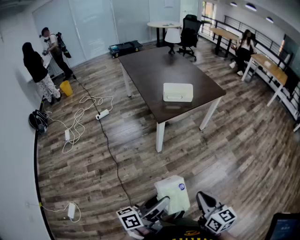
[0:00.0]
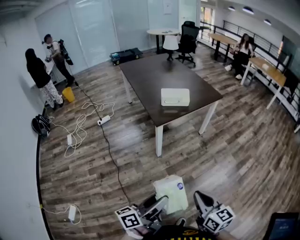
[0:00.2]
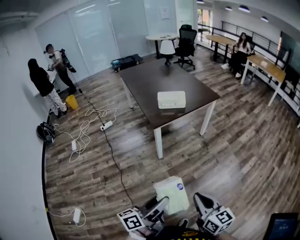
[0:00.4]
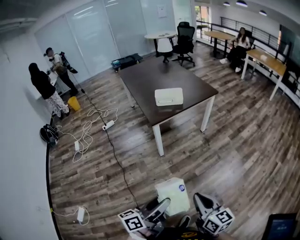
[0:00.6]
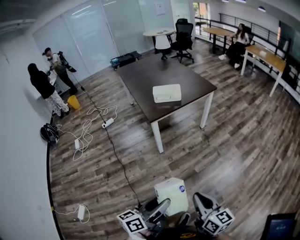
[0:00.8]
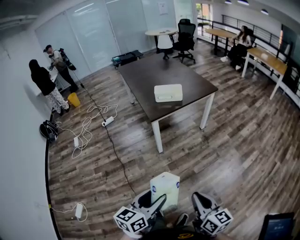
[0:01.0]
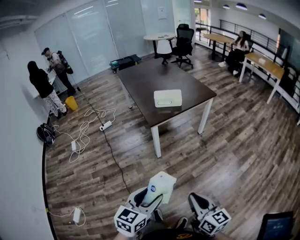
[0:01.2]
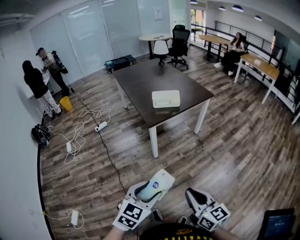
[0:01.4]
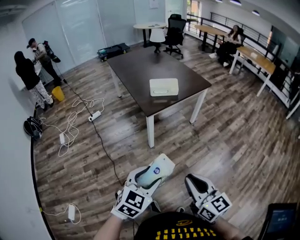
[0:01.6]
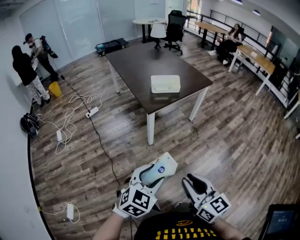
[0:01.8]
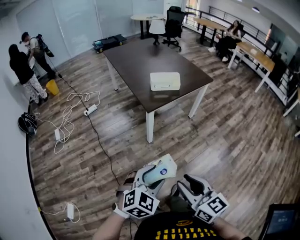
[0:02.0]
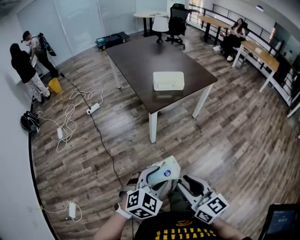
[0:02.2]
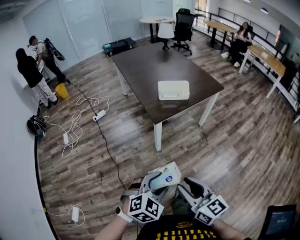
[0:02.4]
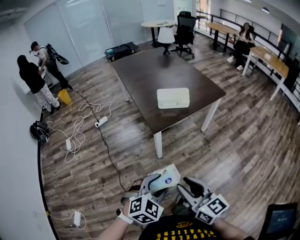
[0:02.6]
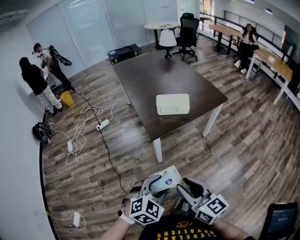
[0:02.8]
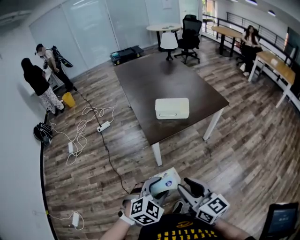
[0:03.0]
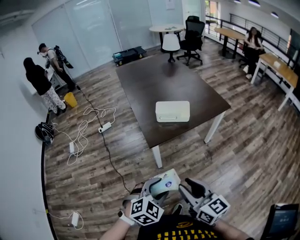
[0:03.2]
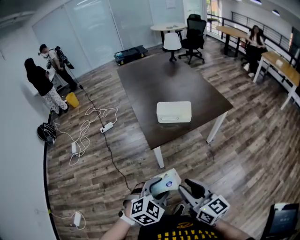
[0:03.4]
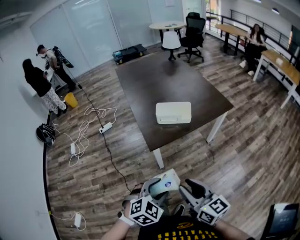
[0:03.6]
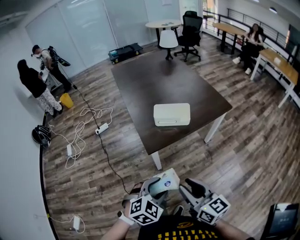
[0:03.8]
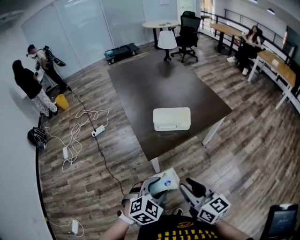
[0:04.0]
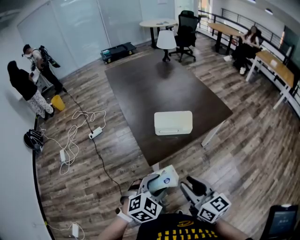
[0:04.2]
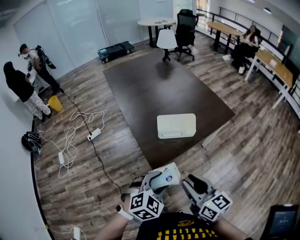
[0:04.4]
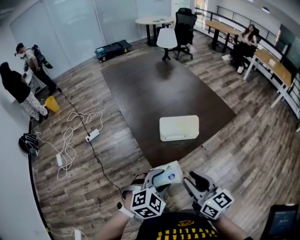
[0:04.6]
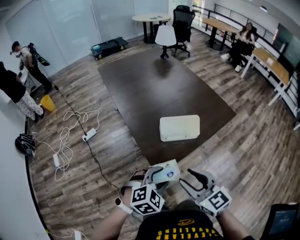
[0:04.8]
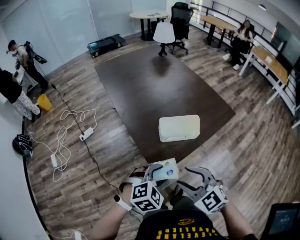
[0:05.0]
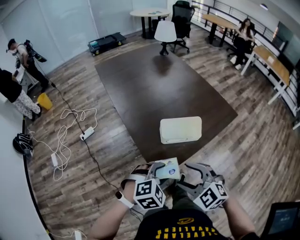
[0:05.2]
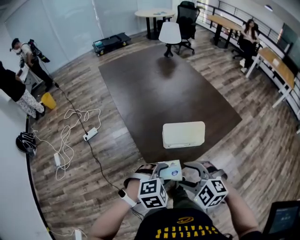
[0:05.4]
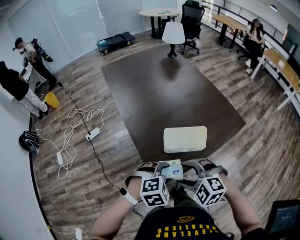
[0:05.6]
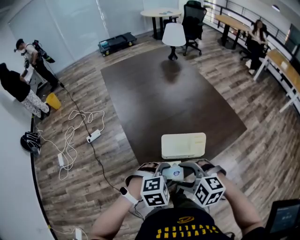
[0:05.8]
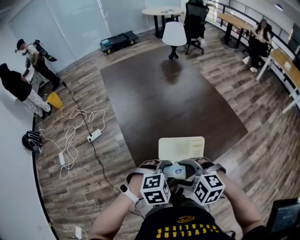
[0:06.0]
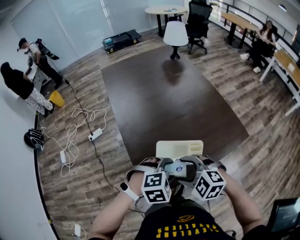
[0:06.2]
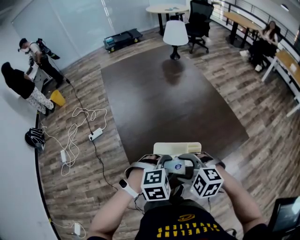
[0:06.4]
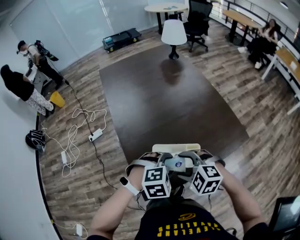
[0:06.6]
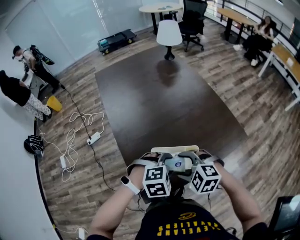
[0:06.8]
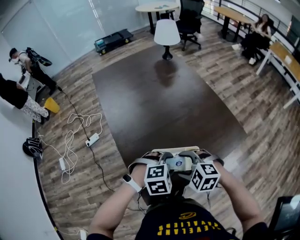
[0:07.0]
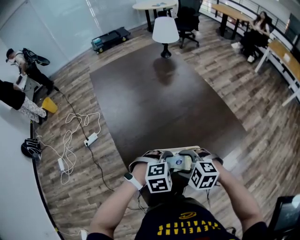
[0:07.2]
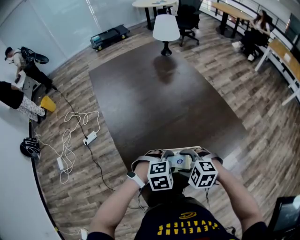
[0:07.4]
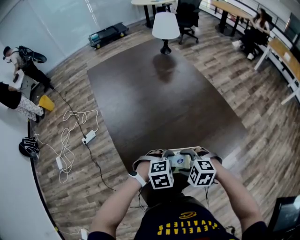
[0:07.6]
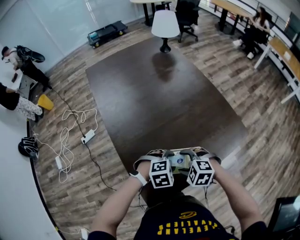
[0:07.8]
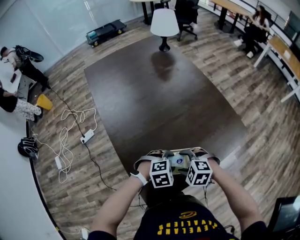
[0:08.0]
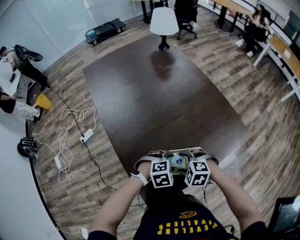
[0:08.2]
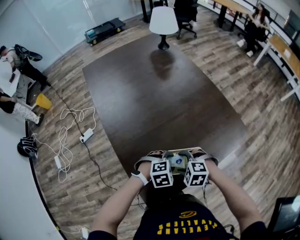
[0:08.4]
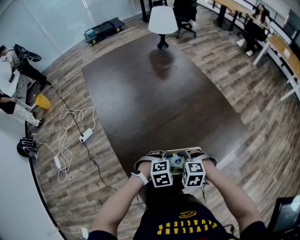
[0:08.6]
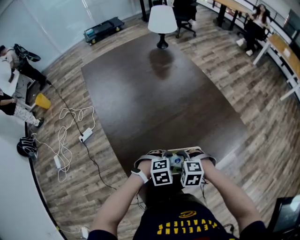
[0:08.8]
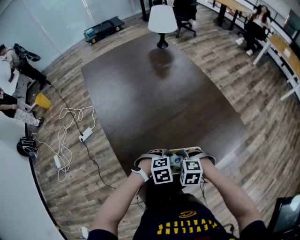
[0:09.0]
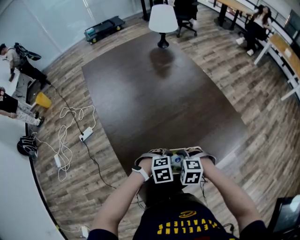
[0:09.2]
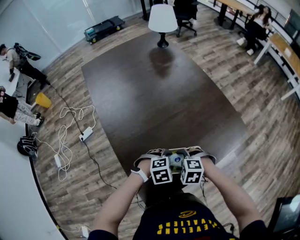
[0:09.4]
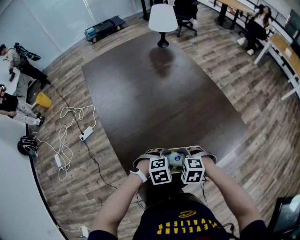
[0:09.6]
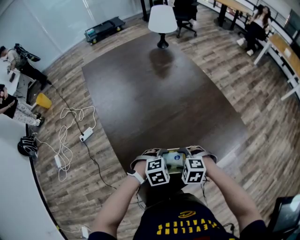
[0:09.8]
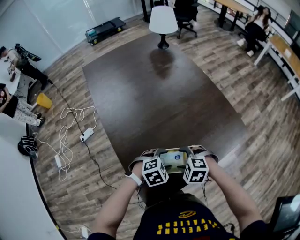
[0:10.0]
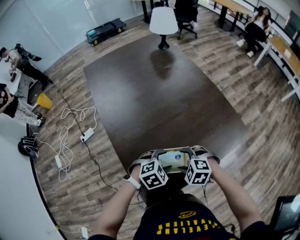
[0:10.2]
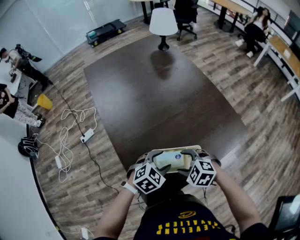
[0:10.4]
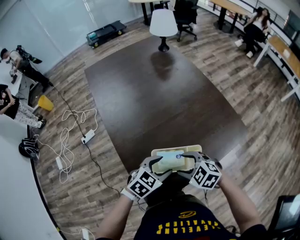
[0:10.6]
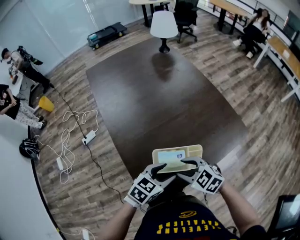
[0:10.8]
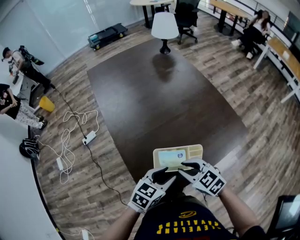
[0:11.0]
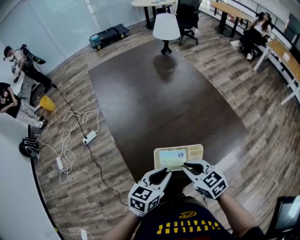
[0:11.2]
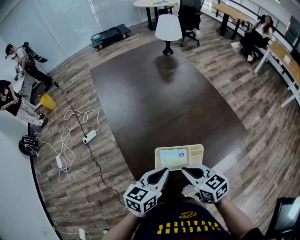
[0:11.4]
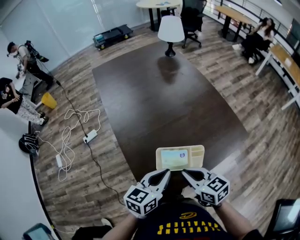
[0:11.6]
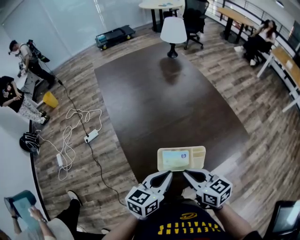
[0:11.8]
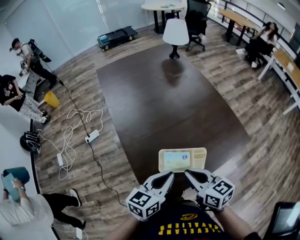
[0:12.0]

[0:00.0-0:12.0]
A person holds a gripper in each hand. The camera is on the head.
0:00.0 to 0:01.6: The right gripper travels upward by approximately 5 cm, and moves roughly 10 cm to the right and comes back; the left gripper travels to the right and back again, roughly 10 cm each way, and twists approximately 70 degrees clockwise, seen from behind.
0:01.6 to 0:03.0: The two grippers go about 20 cm forward.
0:03.0 to 0:04.4: The grippers both shift forward by approximately 20 cm.
0:04.4 to 0:06.0: Both grippers travel together forward, approximately 20 cm. The left gripper changes its angle by approximately 20 degrees; the right gripper tips its fingers downward by about 40 degrees, and opens up.
0:06.0 to 0:07.6: The left gripper changes place by some 15 cm. The right gripper shifts by roughly 15 cm.
0:07.6 to 0:09.0: The two grippers go some 5 cm downward.
0:09.0 to 0:10.4: The left gripper shifts some 5 cm upward, and swivels about 30 degrees.
0:10.4 to 0:12.0: The right gripper travels upward by approximately 15 cm, tilts its fingers about 30 degrees upward, and closes, while the left gripper moves upward and backward, approximately 15 cm, angles its fingers upward, by roughly 30 degrees, and closes its fingers.

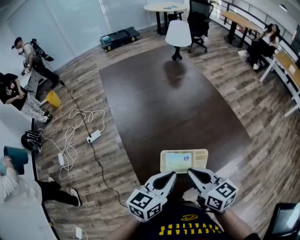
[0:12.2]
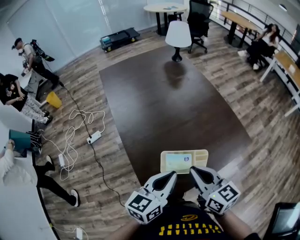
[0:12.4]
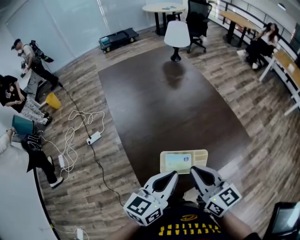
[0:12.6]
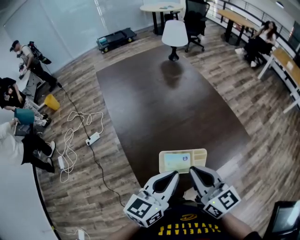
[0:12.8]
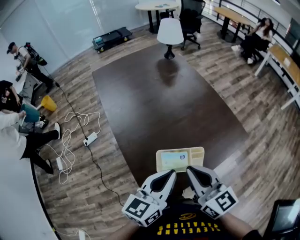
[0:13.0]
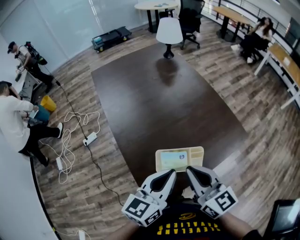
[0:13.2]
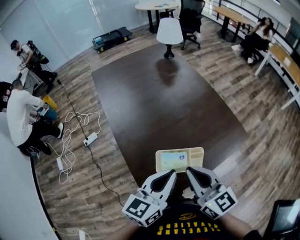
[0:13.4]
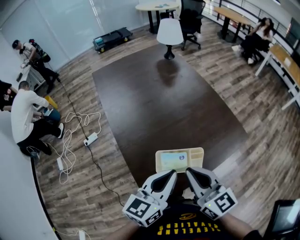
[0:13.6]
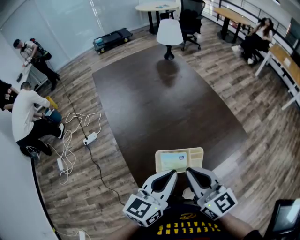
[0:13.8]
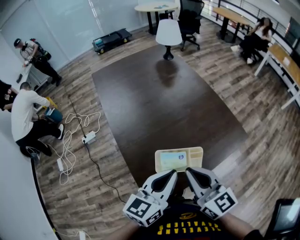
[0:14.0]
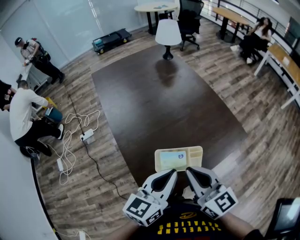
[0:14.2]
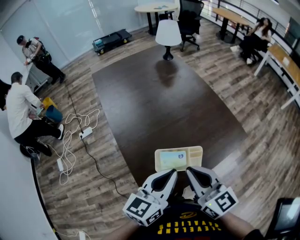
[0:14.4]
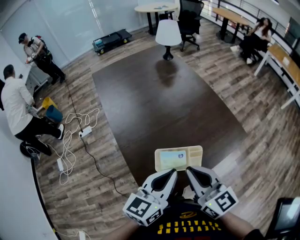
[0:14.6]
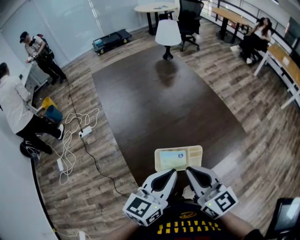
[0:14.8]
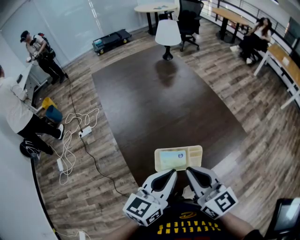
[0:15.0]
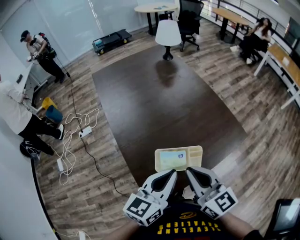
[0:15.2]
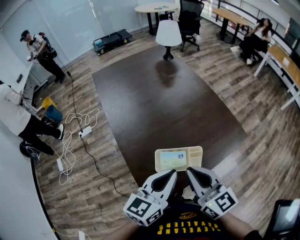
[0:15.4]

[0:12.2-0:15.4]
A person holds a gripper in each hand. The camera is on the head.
0:12.2 to 0:13.8: The grippers both shift upward by about 5 cm.
0:13.8 to 0:15.4: Neither gripper changes place.

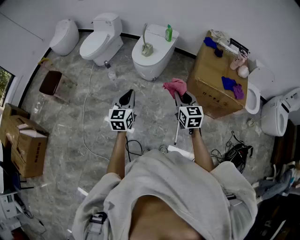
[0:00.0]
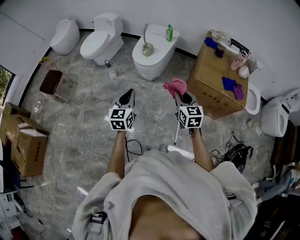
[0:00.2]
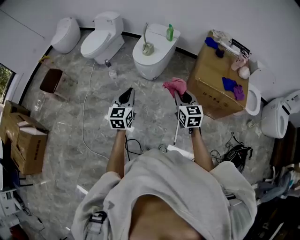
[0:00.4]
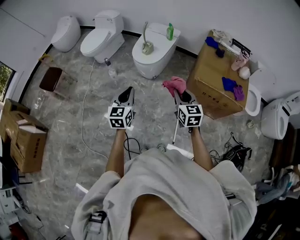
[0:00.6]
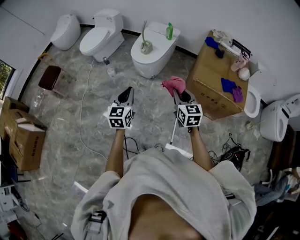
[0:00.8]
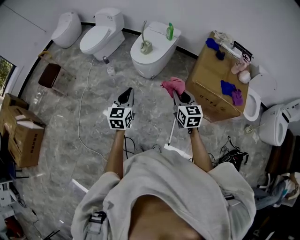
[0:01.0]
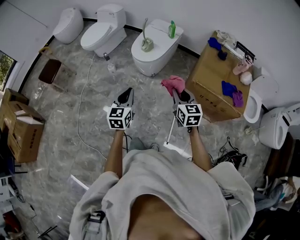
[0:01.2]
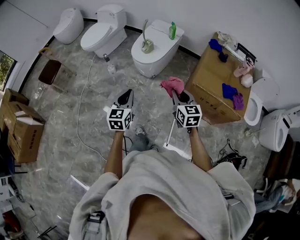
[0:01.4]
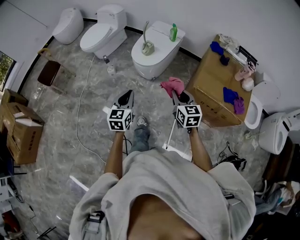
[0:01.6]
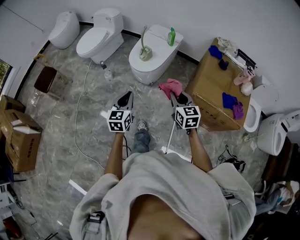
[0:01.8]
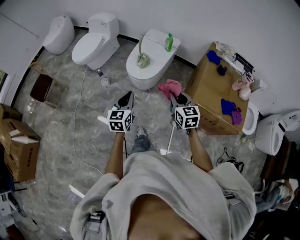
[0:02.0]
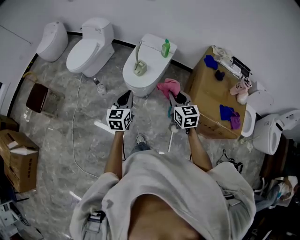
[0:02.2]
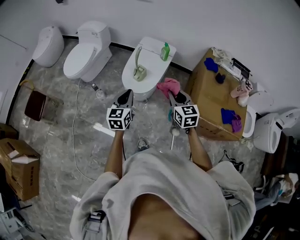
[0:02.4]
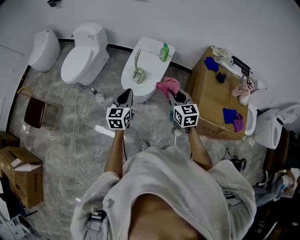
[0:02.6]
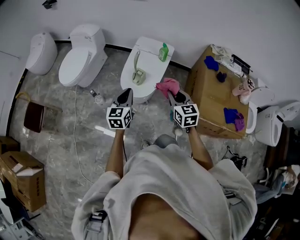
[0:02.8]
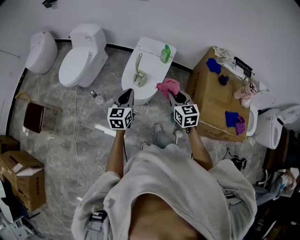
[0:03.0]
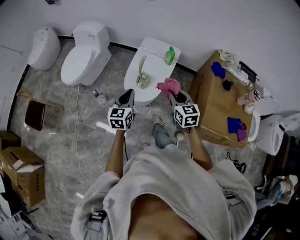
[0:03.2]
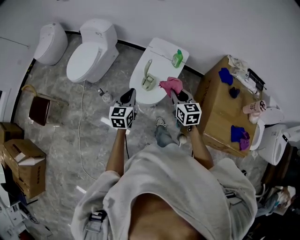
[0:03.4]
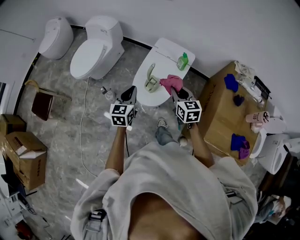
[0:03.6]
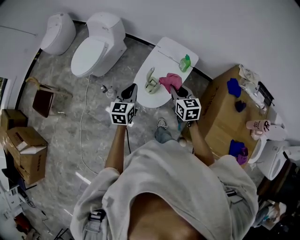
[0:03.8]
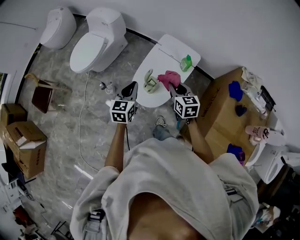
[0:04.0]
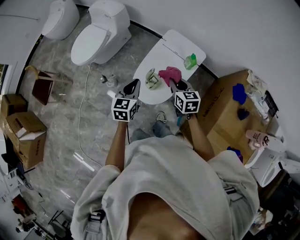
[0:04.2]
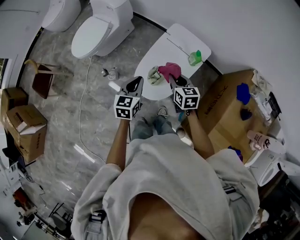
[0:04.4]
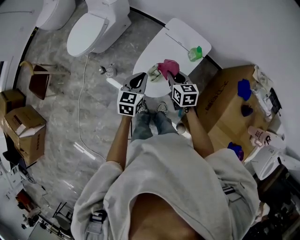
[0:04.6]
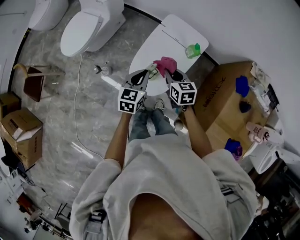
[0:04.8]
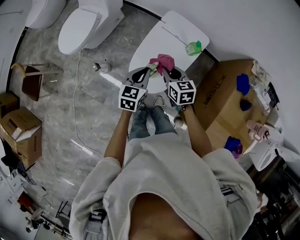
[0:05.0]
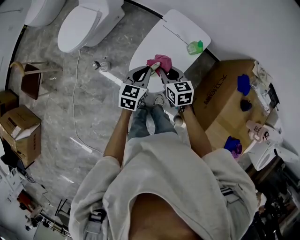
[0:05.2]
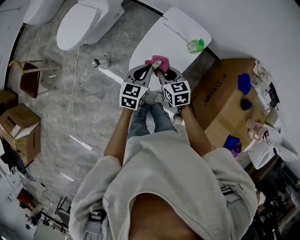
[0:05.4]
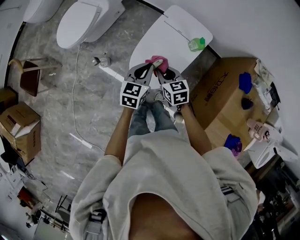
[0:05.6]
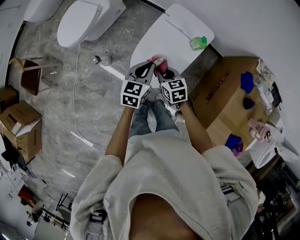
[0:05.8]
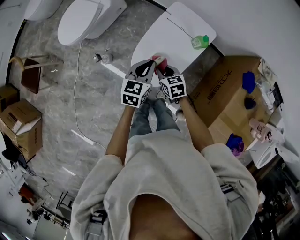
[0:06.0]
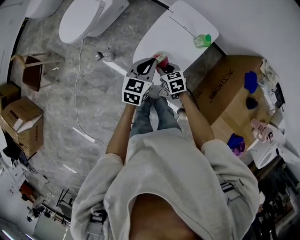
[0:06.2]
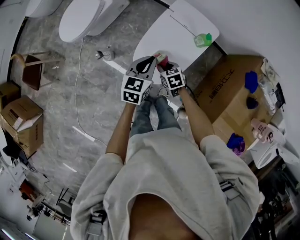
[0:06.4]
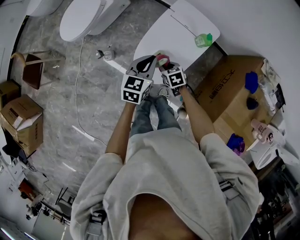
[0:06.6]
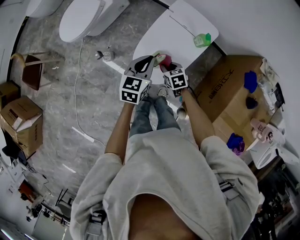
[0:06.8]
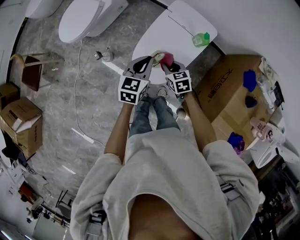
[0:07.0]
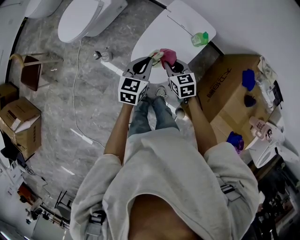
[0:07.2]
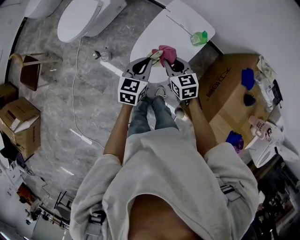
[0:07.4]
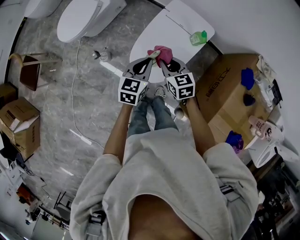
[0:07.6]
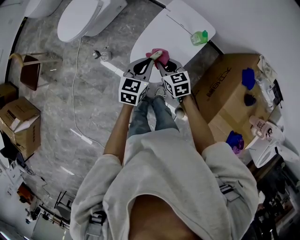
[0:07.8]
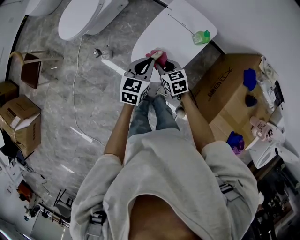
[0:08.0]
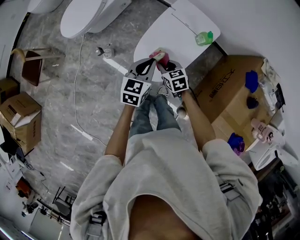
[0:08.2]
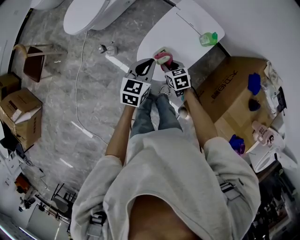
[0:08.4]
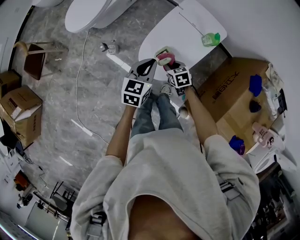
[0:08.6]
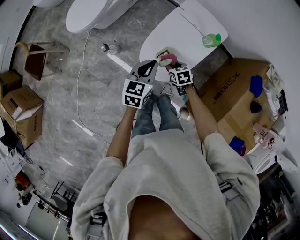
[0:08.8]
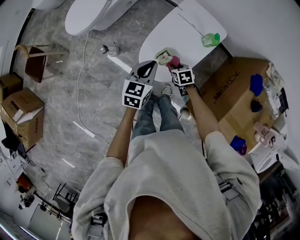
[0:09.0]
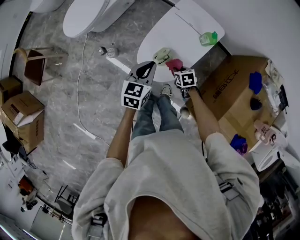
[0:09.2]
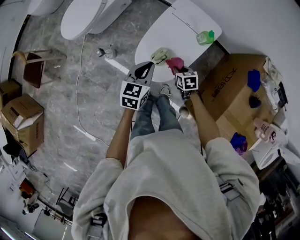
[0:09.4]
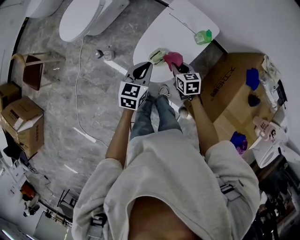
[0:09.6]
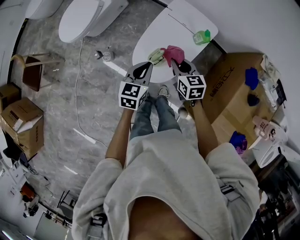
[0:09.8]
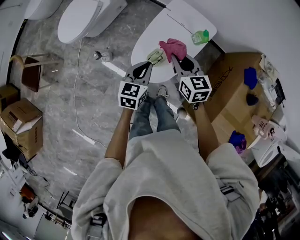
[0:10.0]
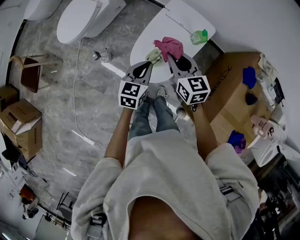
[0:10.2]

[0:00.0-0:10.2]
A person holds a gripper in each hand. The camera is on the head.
0:00.0 to 0:01.4: The right gripper is displaced forward by approximately 5 cm; the left gripper is displaced to the right by approximately 5 cm.
0:01.4 to 0:03.0: Both grippers travel together forward, roughly 35 cm.
0:03.0 to 0:04.4: The right gripper travels forward and downward by roughly 25 cm, and turns by roughly 20 degrees. The left gripper goes some 15 cm forward.
0:04.4 to 0:05.8: The left gripper ends up approximately 5 cm from where it was, while the right gripper shifts about 10 cm to the left and downward.
0:05.8 to 0:07.2: The right gripper travels downward and back again, approximately 10 cm each way.
0:07.2 to 0:08.8: The right gripper travels downward by about 15 cm, and changes its angle by roughly 20 degrees.
0:08.8 to 0:10.2: The right gripper heads upward, covering about 25 cm, and tilts its fingers approximately 30 degrees upward.
